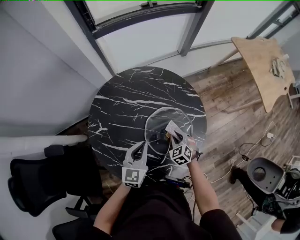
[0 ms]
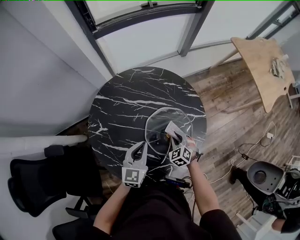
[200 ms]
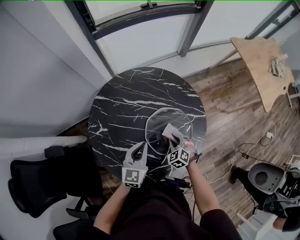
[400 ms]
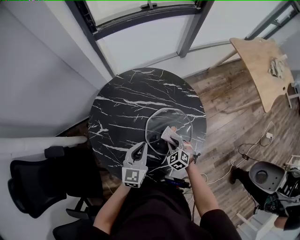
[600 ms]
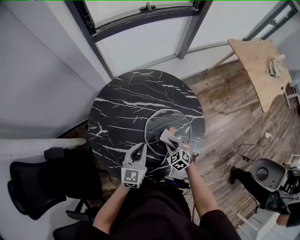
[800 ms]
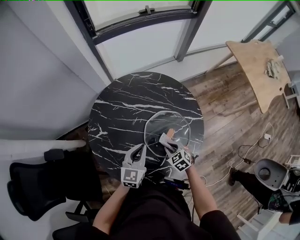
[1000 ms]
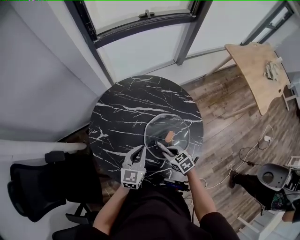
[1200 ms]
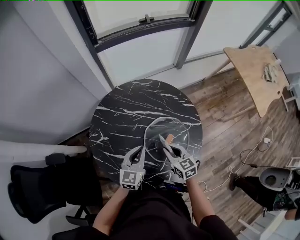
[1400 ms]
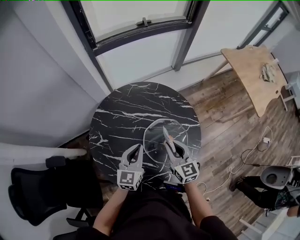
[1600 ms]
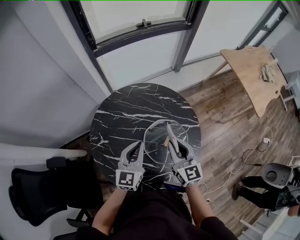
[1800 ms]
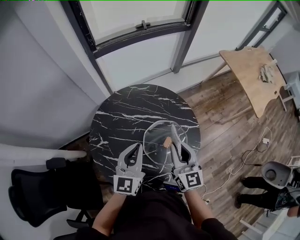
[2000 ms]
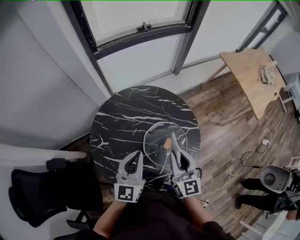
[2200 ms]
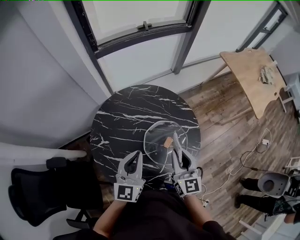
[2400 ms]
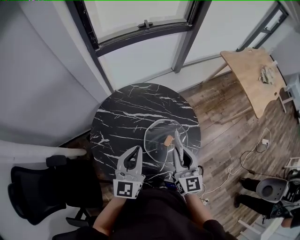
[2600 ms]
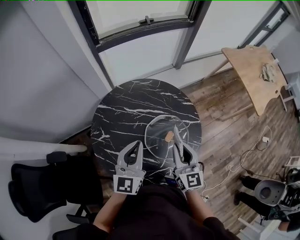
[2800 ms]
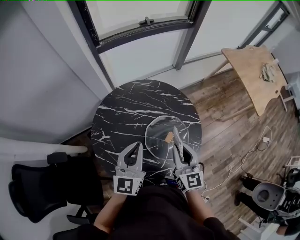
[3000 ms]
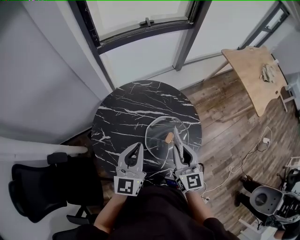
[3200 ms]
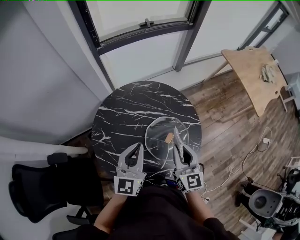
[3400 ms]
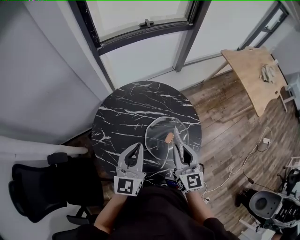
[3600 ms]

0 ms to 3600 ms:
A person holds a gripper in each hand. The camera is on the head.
0 ms to 1800 ms: The left gripper moves upward, roughly 10 cm. Meanwhile the right gripper is displaced upward by approximately 25 cm, and tilts its fingers about 40 degrees upward.
1800 ms to 3600 ms: The left gripper shifts roughly 10 cm upward, while the right gripper moves some 5 cm.

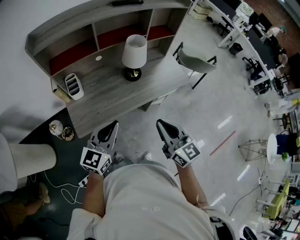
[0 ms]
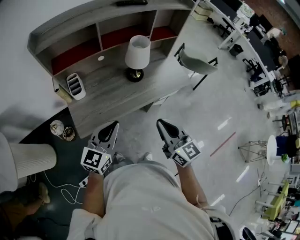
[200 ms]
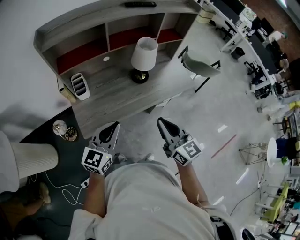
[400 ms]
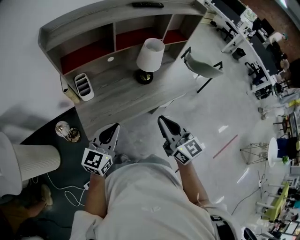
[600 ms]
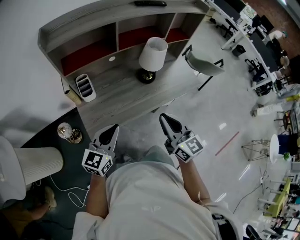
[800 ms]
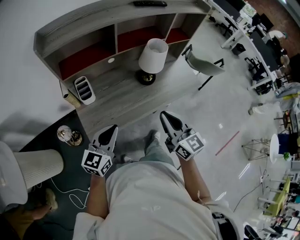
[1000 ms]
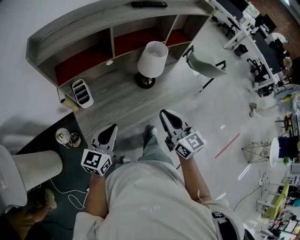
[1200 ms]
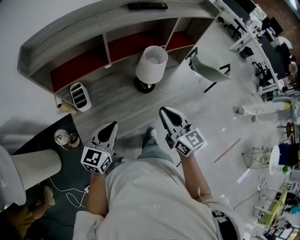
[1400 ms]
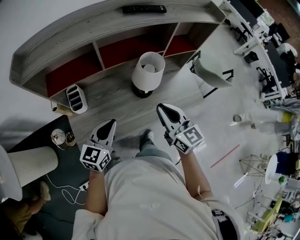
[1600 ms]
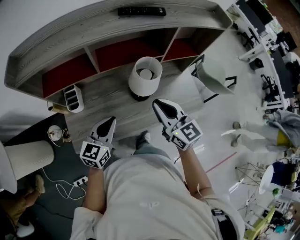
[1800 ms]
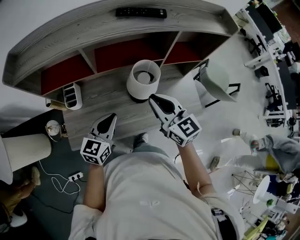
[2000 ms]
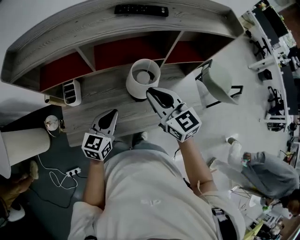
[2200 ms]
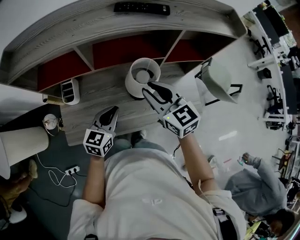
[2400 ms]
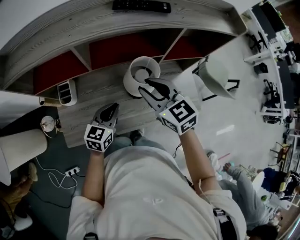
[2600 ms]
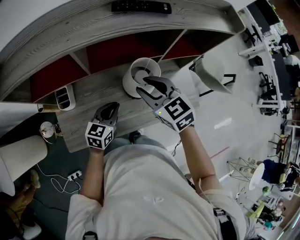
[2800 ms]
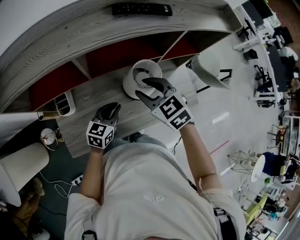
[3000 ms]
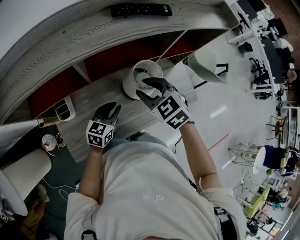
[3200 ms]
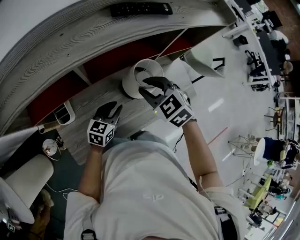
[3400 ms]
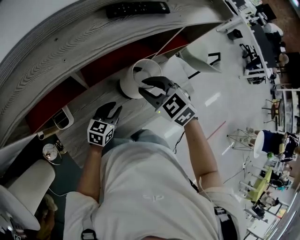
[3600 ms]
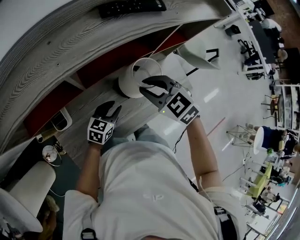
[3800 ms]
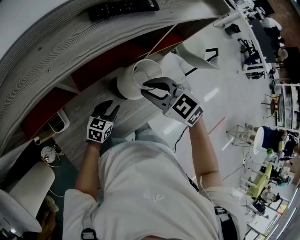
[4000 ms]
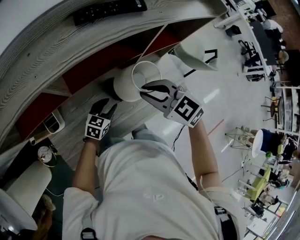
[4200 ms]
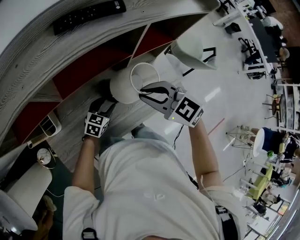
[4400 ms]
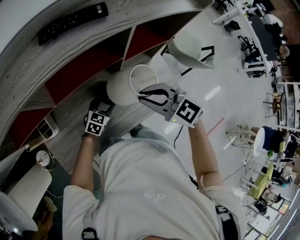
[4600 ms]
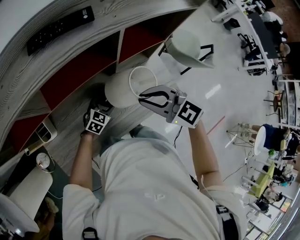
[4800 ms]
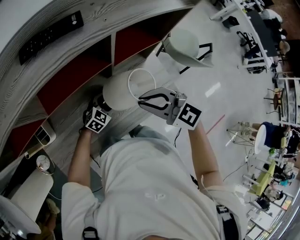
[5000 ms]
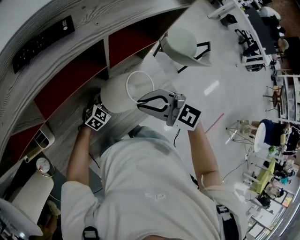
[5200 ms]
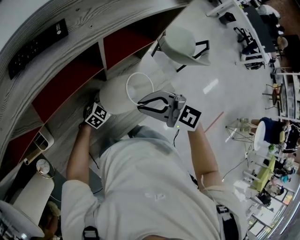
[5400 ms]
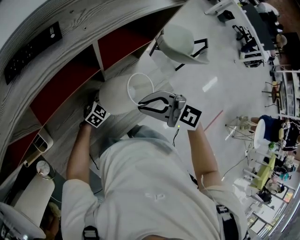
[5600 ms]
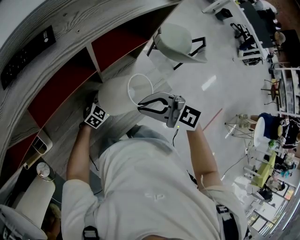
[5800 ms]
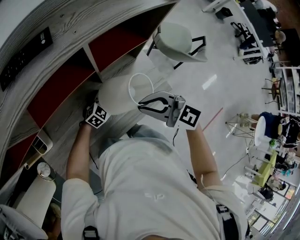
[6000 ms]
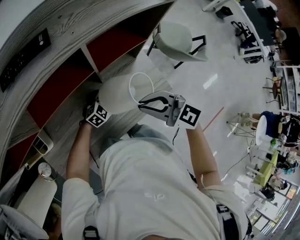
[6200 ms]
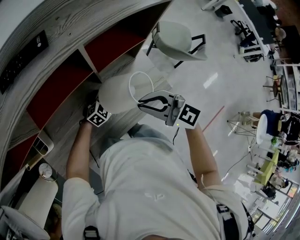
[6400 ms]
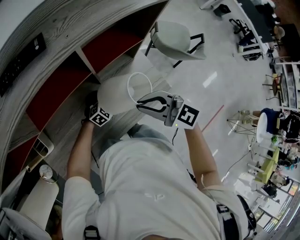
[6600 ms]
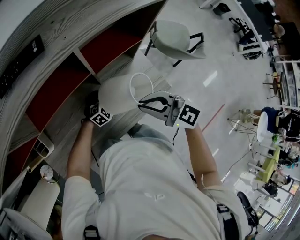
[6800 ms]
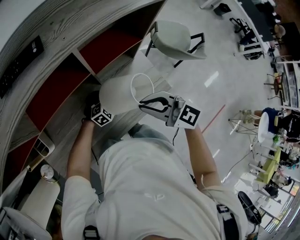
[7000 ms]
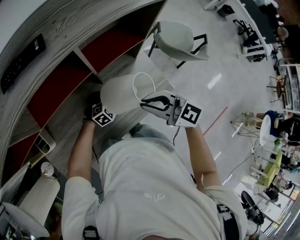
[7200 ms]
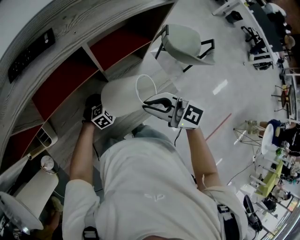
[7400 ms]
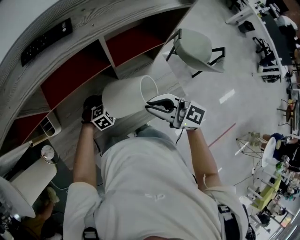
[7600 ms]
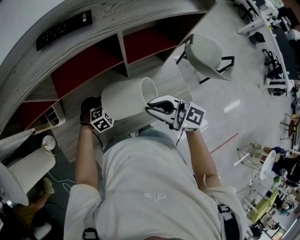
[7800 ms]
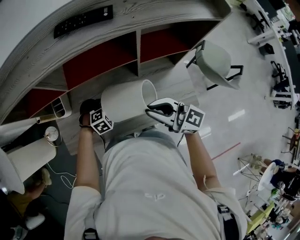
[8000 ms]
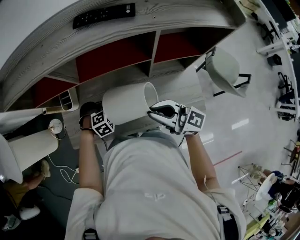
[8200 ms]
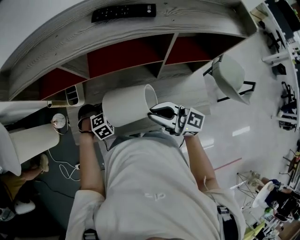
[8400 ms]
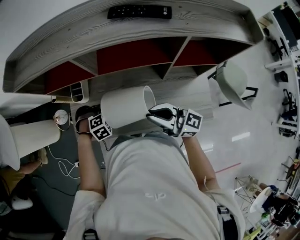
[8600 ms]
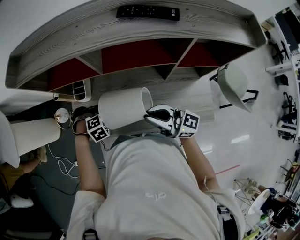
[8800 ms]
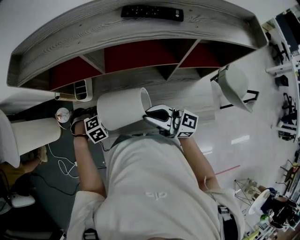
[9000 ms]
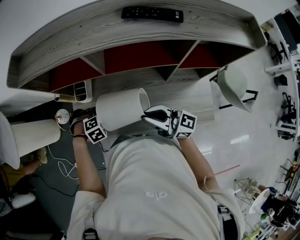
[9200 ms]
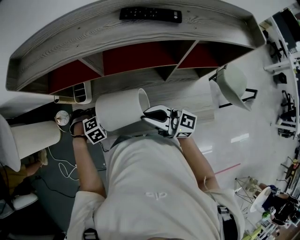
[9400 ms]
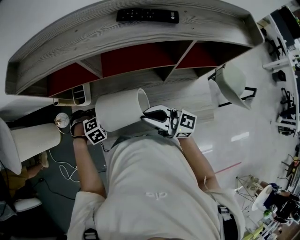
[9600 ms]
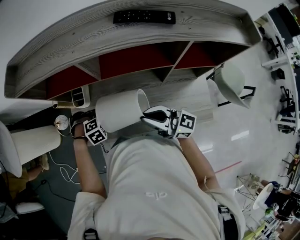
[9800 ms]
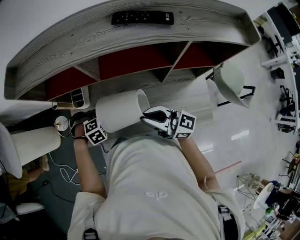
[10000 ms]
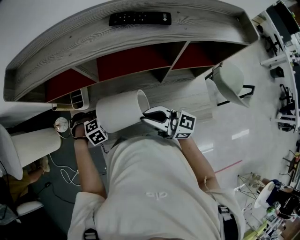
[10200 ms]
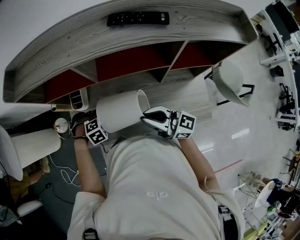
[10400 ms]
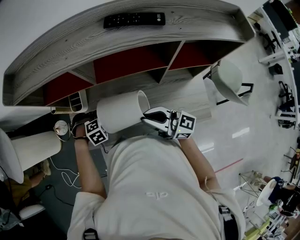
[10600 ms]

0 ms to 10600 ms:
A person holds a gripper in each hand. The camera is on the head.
0 ms to 1600 ms: The grippers both shift forward by roughly 25 cm.
1600 ms to 3000 ms: The right gripper moves forward, about 15 cm, tilts its fingers about 30 degrees downward, and opens up. The left gripper goes roughly 20 cm forward, downward and to the right.
3000 ms to 4600 ms: The right gripper shifts some 10 cm to the right, and closes its fingers; the left gripper travels downward, to the right and forward by approximately 20 cm, turns by roughly 30 degrees, and opens its fingers.
4600 ms to 6000 ms: The left gripper shifts by roughly 15 cm, and swivels roughly 30 degrees. Meanwhile the right gripper shifts by about 10 cm.
6000 ms to 7600 ms: The left gripper moves some 10 cm, and swivels approximately 30 degrees.
7600 ms to 9000 ms: The left gripper ends up about 35 cm from where it was, and turns by about 30 degrees, while the right gripper changes place by about 20 cm, and rotates roughly 30 degrees.
9000 ms to 10600 ms: There are only small adjustments of the grippers.

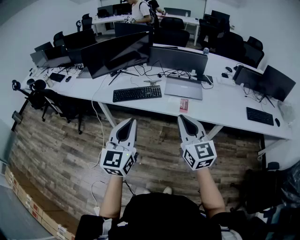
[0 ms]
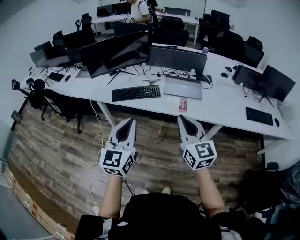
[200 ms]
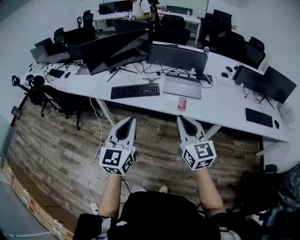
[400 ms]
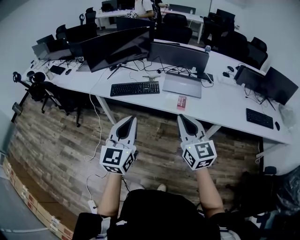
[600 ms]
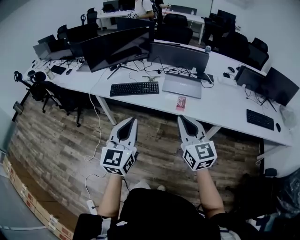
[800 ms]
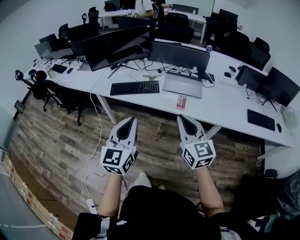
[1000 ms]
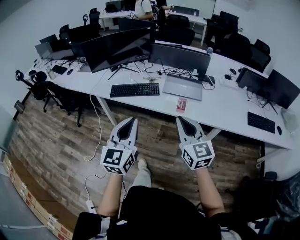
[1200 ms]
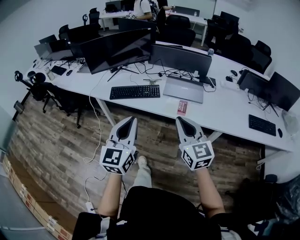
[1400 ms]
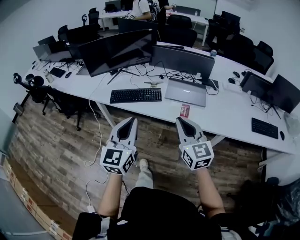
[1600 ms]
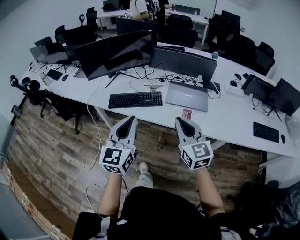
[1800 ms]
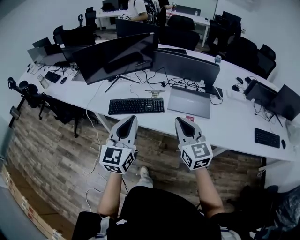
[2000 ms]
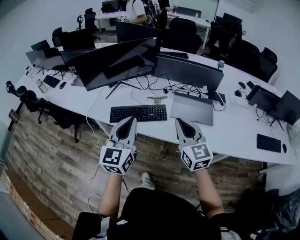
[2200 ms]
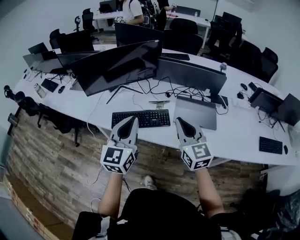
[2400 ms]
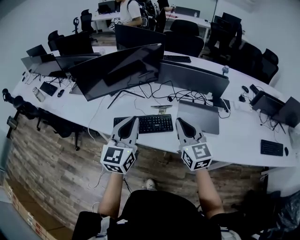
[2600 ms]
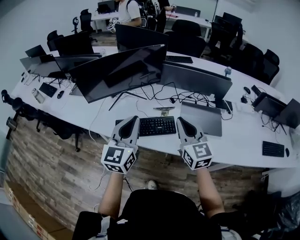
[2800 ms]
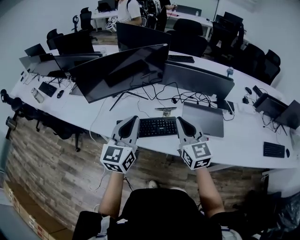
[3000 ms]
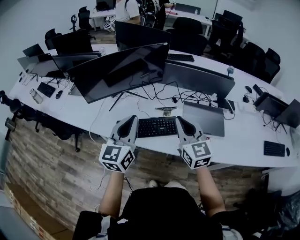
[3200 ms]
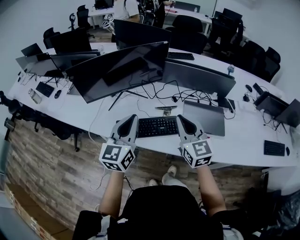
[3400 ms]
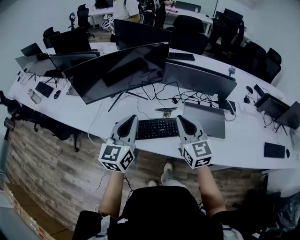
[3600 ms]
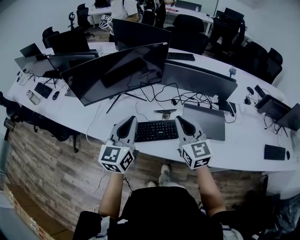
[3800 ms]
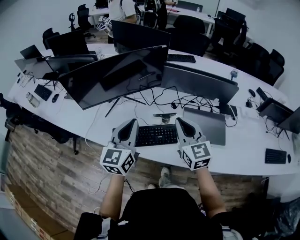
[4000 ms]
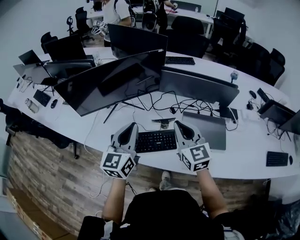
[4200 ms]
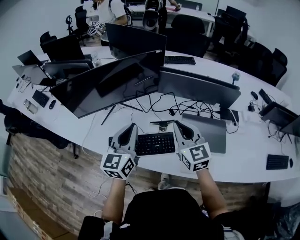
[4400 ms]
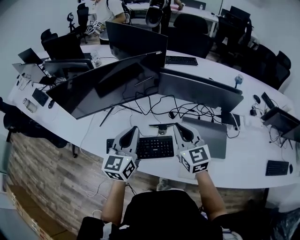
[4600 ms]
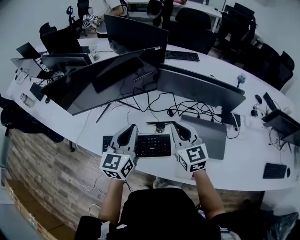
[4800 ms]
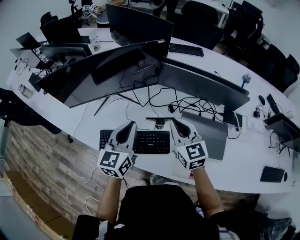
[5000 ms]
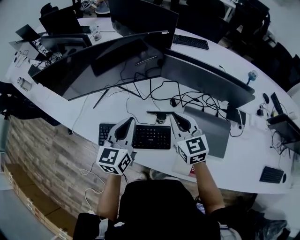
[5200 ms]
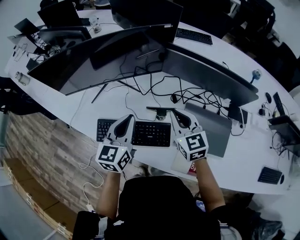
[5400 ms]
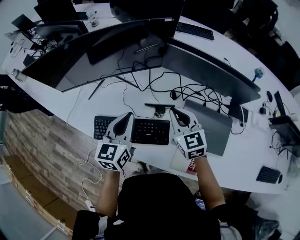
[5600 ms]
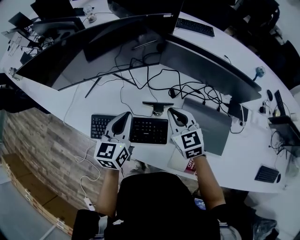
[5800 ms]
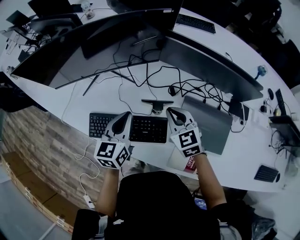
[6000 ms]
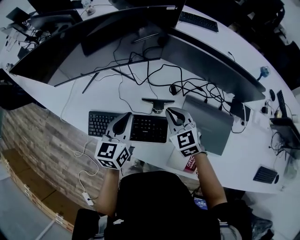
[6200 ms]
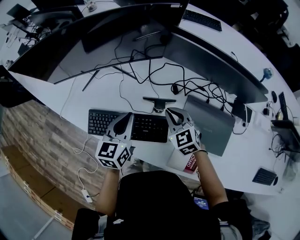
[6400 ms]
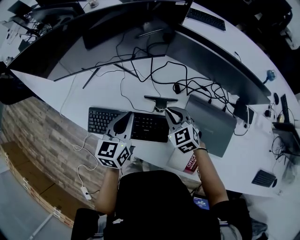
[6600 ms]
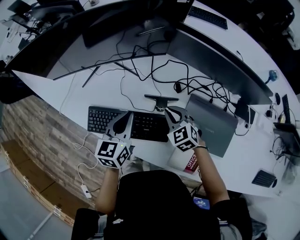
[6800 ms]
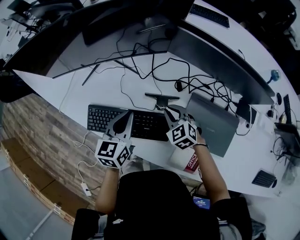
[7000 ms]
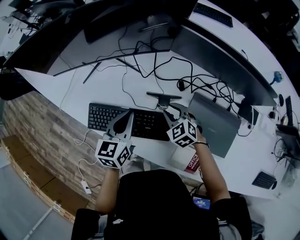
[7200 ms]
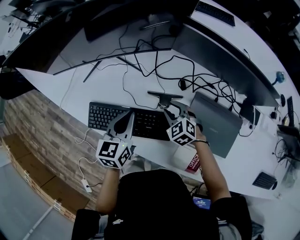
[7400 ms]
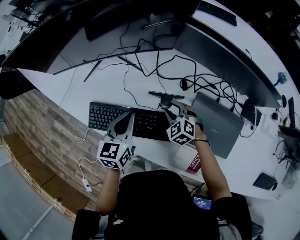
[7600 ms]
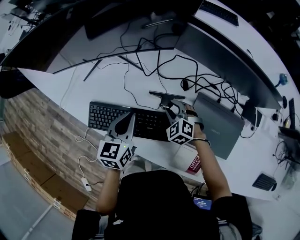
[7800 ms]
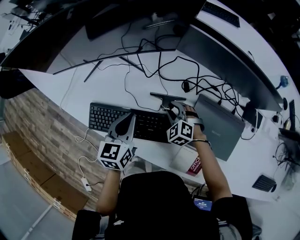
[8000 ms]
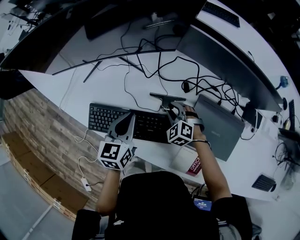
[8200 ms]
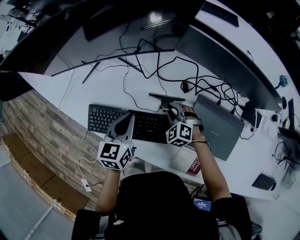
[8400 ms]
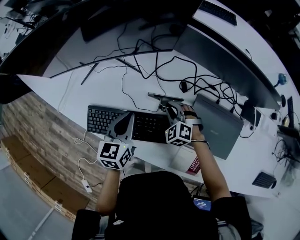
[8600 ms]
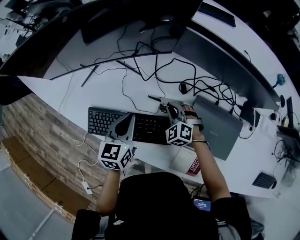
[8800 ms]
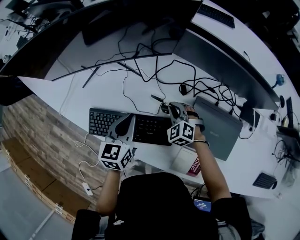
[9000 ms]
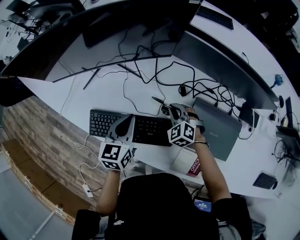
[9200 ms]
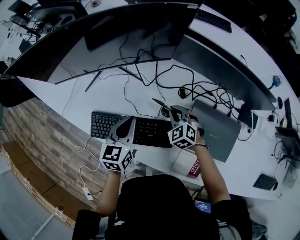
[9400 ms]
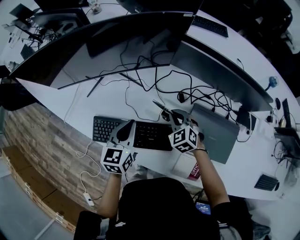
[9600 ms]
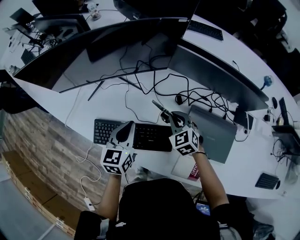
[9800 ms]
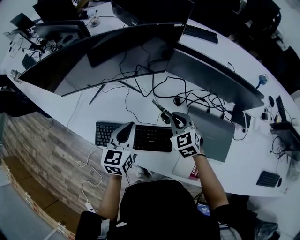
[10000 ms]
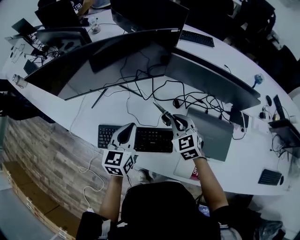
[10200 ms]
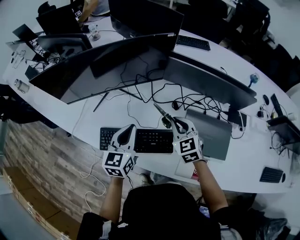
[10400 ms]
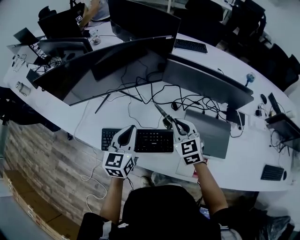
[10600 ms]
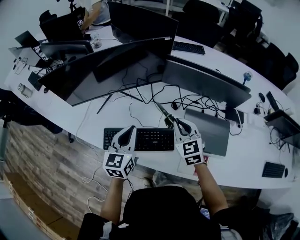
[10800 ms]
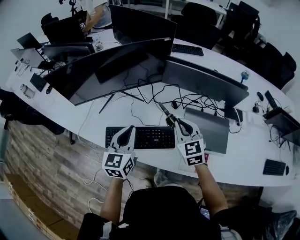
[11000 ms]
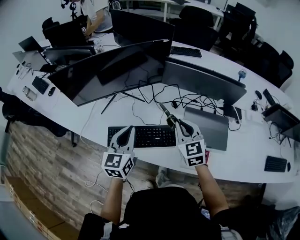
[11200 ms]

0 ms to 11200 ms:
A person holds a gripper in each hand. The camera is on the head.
0 ms to 1600 ms: The right gripper goes about 10 cm forward and downward, while the left gripper shifts roughly 10 cm forward.
1600 ms to 3200 ms: The grippers both shift forward and to the left by approximately 35 cm.
3200 ms to 4800 ms: The left gripper moves forward, downward and to the right, some 20 cm. The right gripper is displaced forward and downward by about 20 cm.
4800 ms to 6400 ms: Both grippers travel together downward, some 15 cm. The right gripper rotates roughly 30 degrees.
6400 ms to 8000 ms: The left gripper is displaced downward by approximately 5 cm. The right gripper shifts about 15 cm downward, swivels some 30 degrees, and opens its fingers.
8000 ms to 9600 ms: The right gripper heads upward, covering about 10 cm, and closes.
9600 ms to 11200 ms: The two grippers go roughly 20 cm upward and backward. The right gripper swivels approximately 30 degrees.
